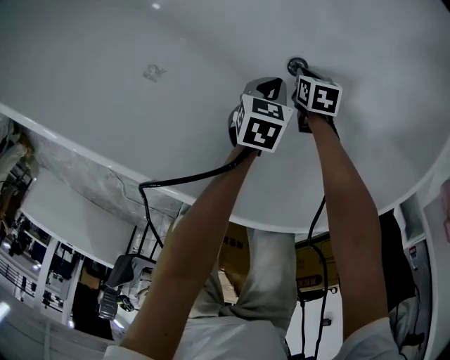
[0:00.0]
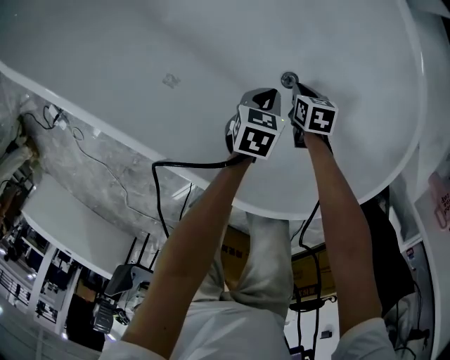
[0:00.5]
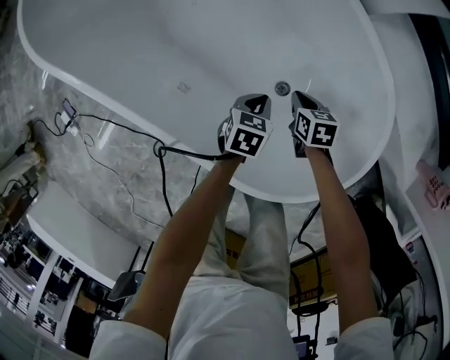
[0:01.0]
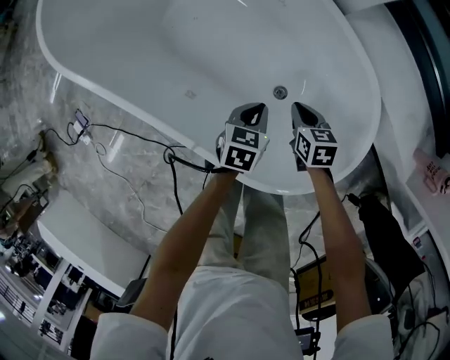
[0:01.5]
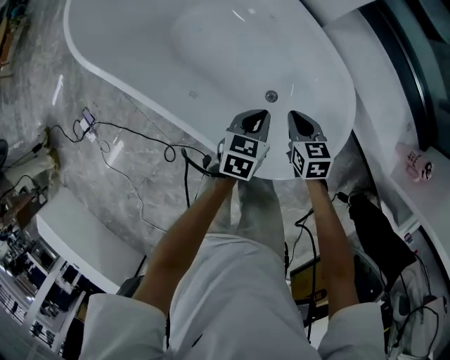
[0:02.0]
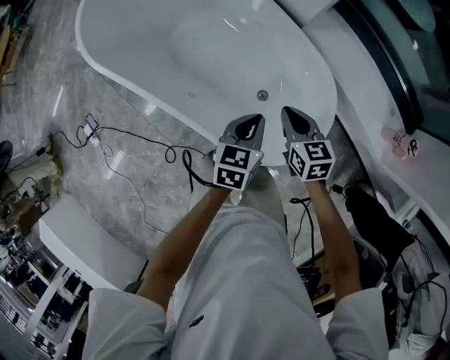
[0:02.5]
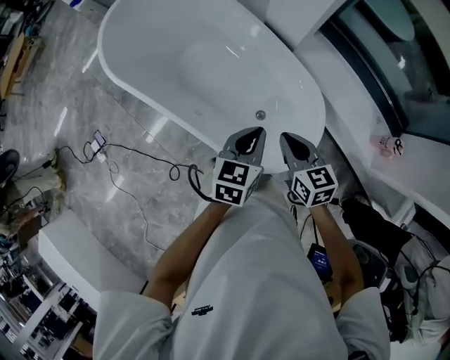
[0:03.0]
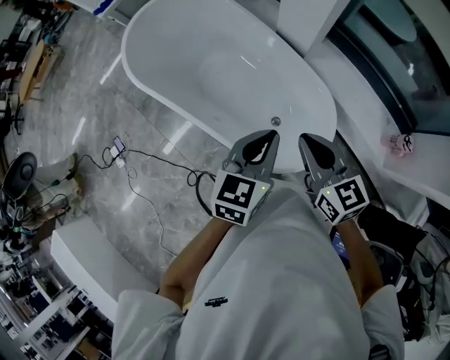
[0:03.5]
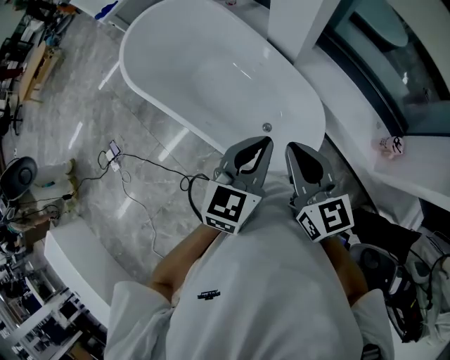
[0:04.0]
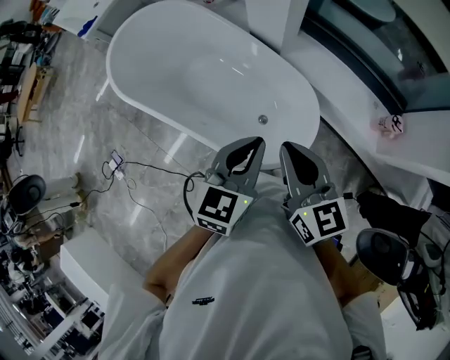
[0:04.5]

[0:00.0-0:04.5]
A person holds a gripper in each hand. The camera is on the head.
0:00.0 to 0:02.0: The two grippers go some 40 cm upward. The right gripper swivels roughly 30 degrees.
0:02.0 to 0:04.5: Both grippers travel together upward, approximately 40 cm. The right gripper angles its fingers upward, by some 30 degrees, while the left gripper changes its angle by approximately 30 degrees.

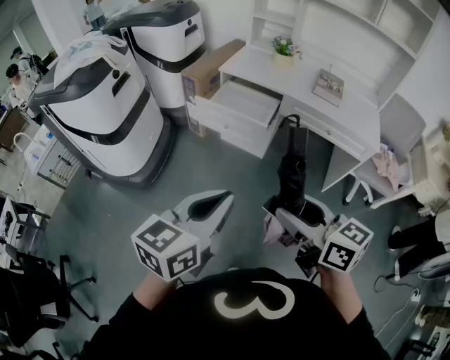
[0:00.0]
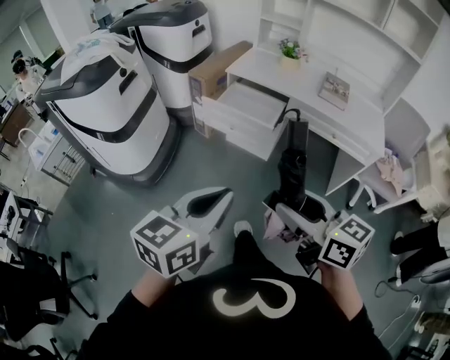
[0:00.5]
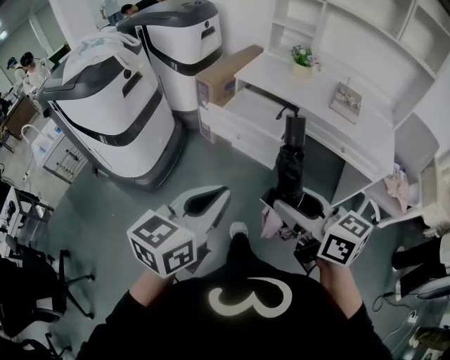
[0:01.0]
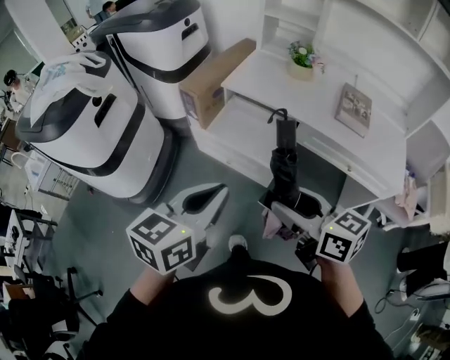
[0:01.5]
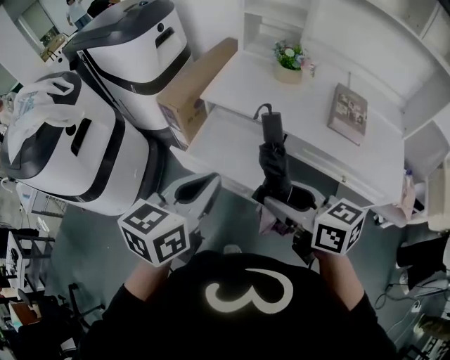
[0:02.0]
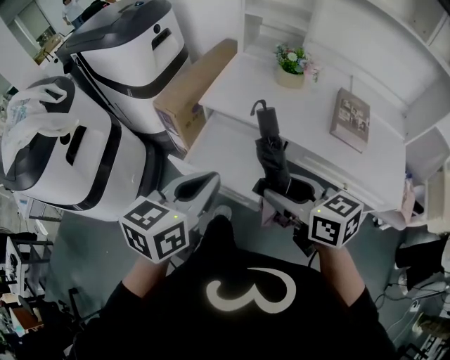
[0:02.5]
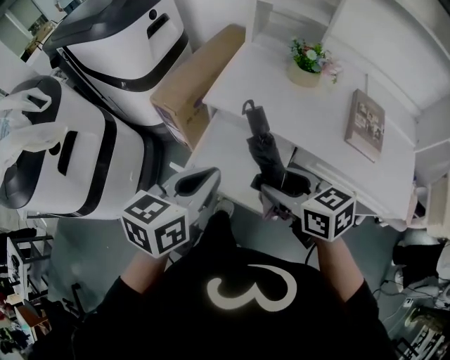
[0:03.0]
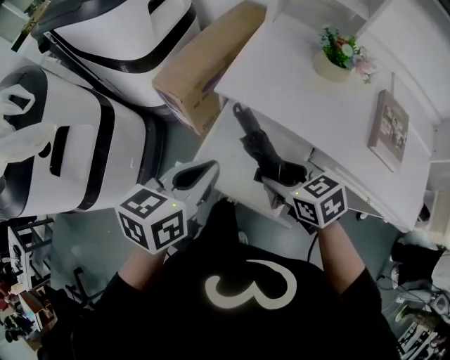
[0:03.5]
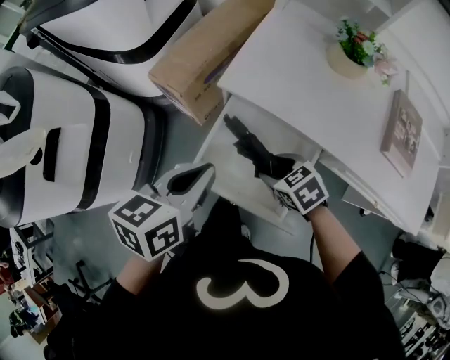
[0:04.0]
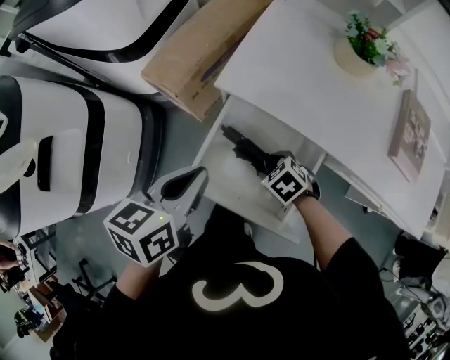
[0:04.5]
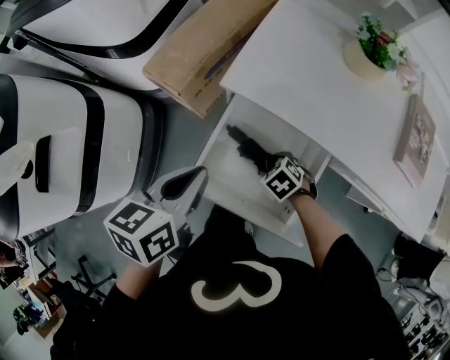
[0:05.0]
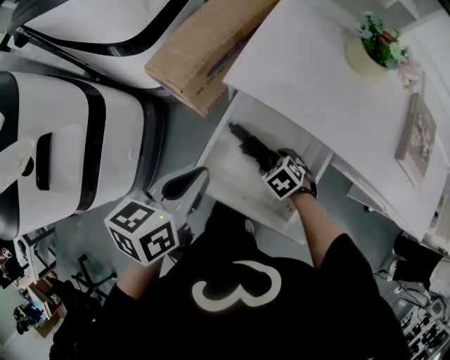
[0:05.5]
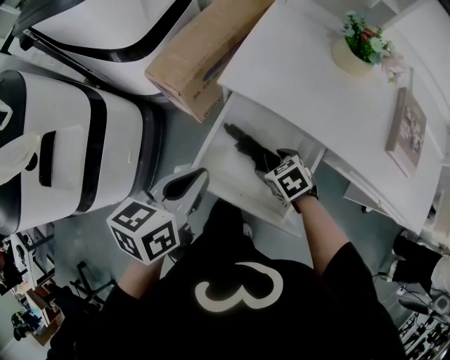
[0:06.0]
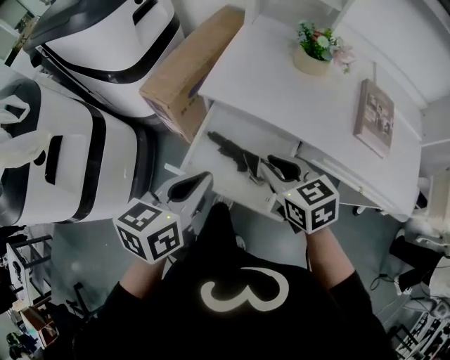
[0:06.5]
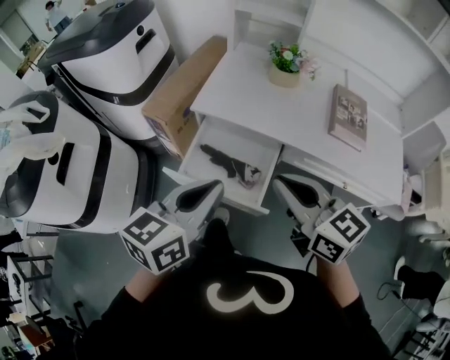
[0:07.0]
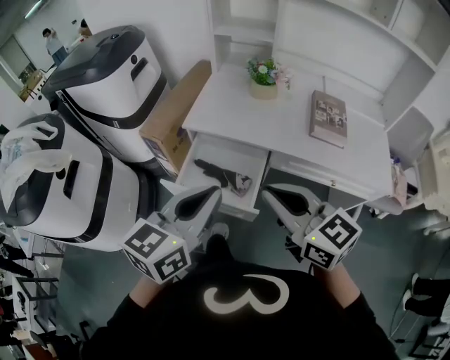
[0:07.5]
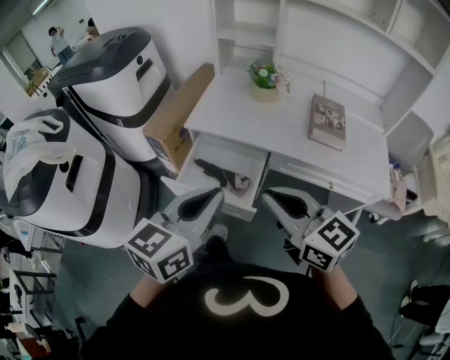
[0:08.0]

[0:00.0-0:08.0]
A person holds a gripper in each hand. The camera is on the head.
0:00.0 to 0:02.0: The two grippers travel together, forward, some 40 cm.
0:02.0 to 0:04.0: The right gripper travels downward and forward by roughly 35 cm, and points its fingers about 40 degrees further downward; the left gripper heads forward and downward, covering roughly 30 cm.
0:04.0 to 0:06.0: The right gripper travels downward by roughly 10 cm, and opens.
0:06.0 to 0:08.0: The left gripper goes some 35 cm upward, backward and to the right, and turns by about 30 degrees; the right gripper moves upward and backward, roughly 50 cm, points its fingers roughly 60 degrees further upward, and closes its fingers.

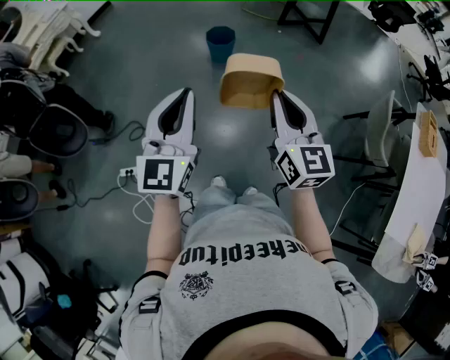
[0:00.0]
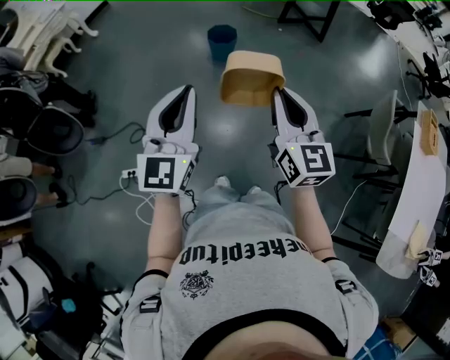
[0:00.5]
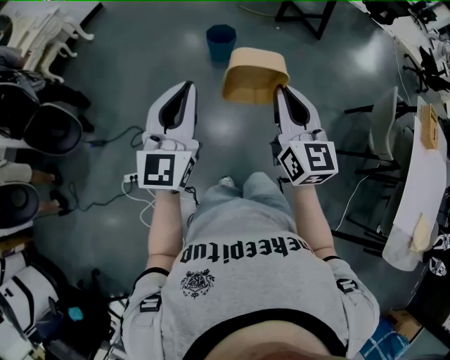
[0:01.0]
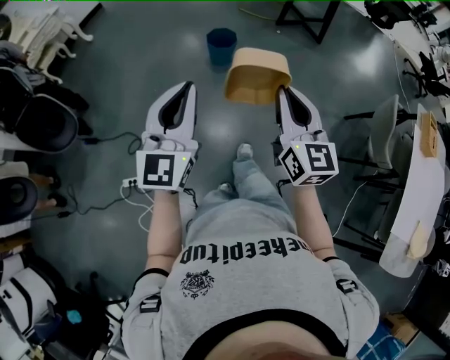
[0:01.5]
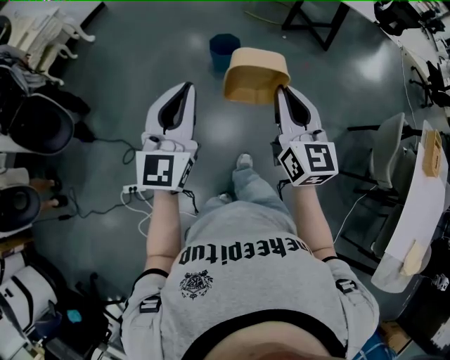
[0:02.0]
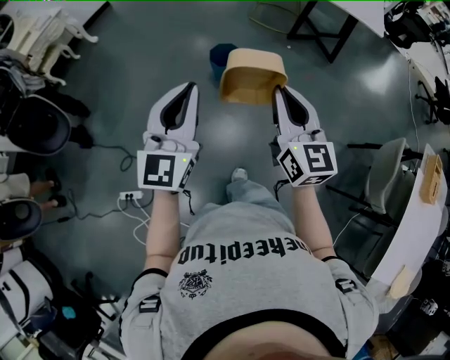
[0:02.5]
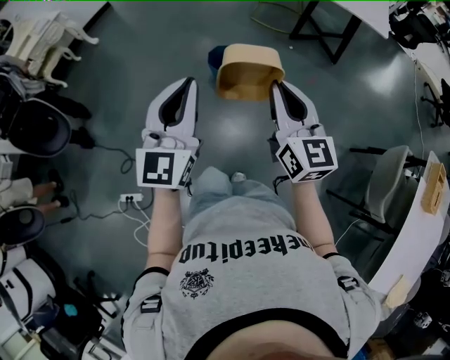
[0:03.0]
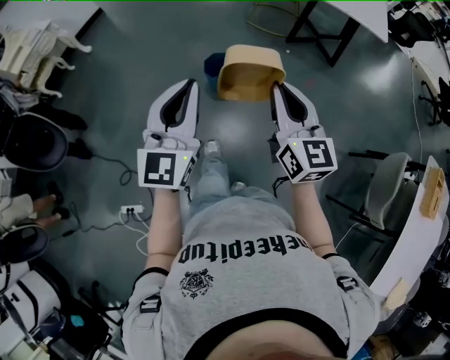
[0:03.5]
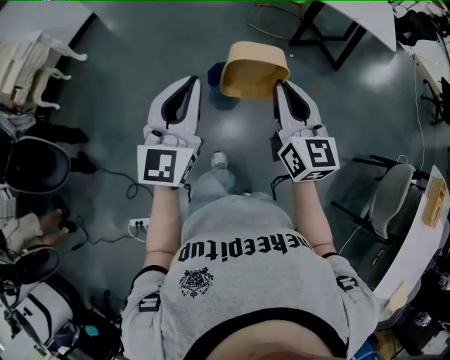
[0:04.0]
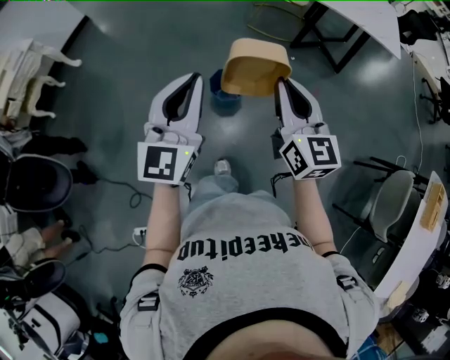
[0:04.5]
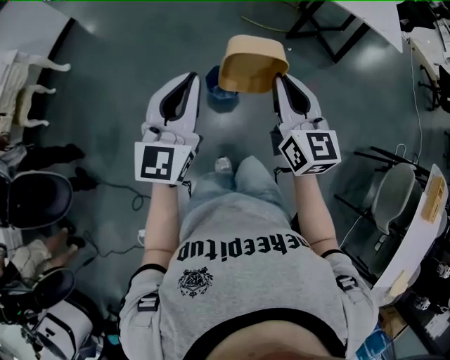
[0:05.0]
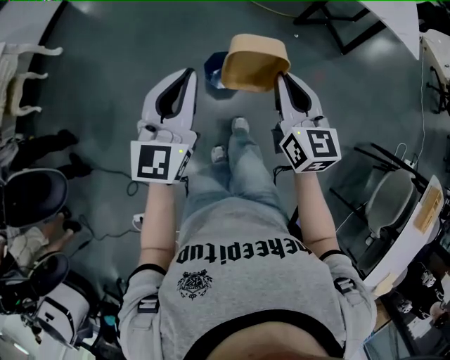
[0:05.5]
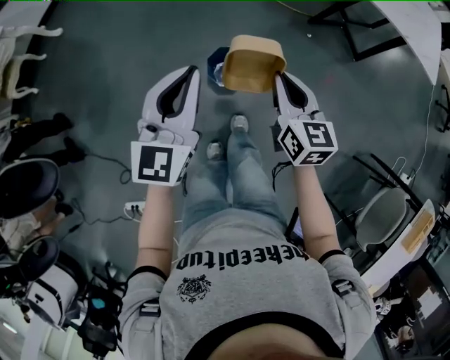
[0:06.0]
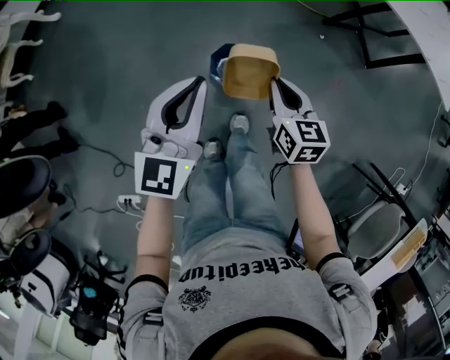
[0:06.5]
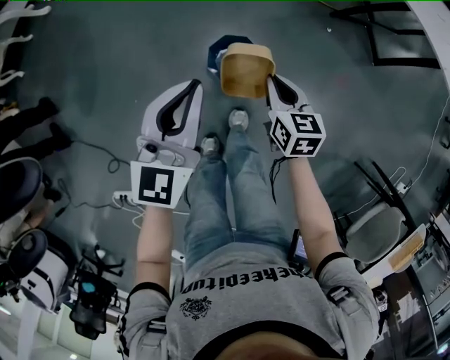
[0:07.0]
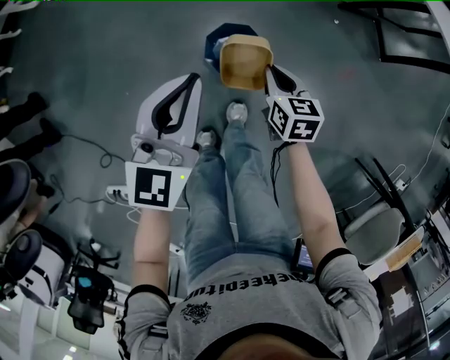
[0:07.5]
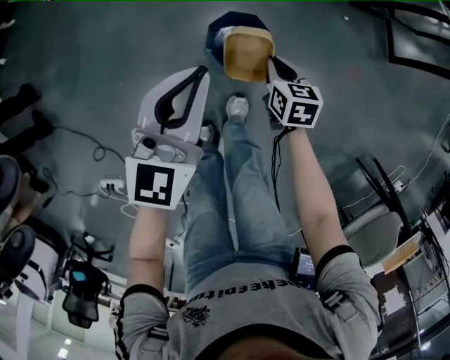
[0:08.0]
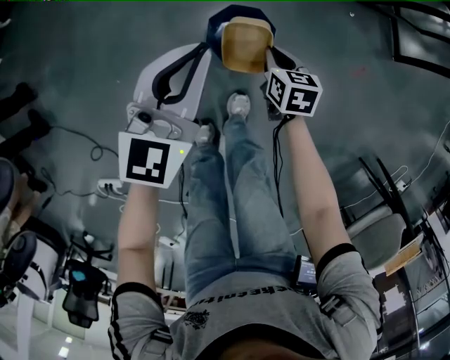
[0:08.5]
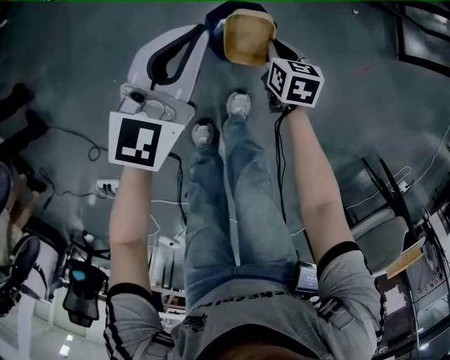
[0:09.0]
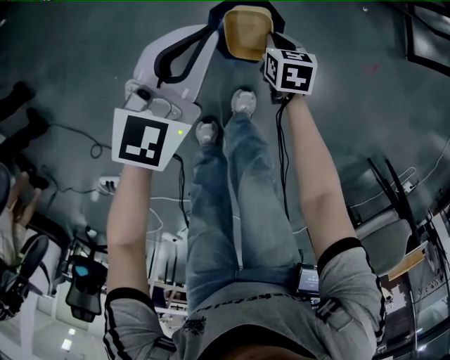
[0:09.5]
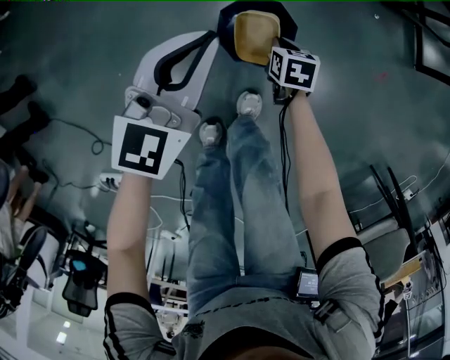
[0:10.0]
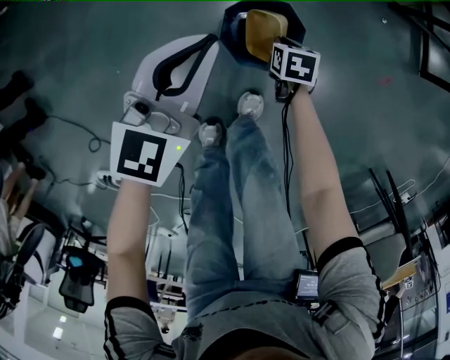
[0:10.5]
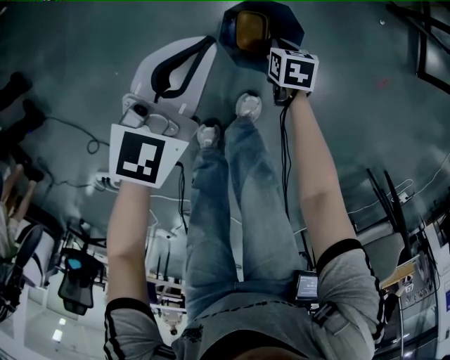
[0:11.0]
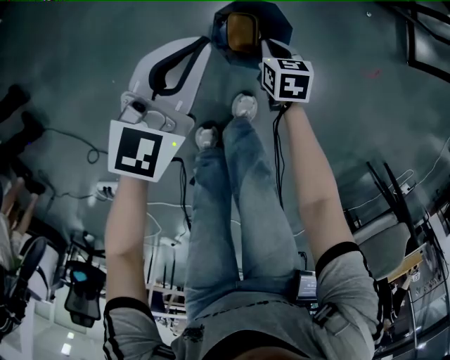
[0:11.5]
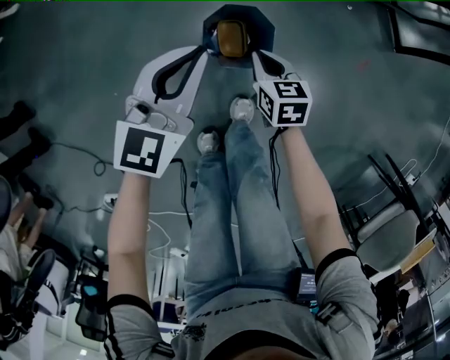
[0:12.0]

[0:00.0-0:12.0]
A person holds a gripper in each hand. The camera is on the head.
0:00.0 to 0:02.0: The two grippers go approximately 15 cm forward.
0:02.0 to 0:04.0: The grippers both shift forward by approximately 35 cm.
0:04.0 to 0:06.0: Both grippers travel together forward and downward, roughly 30 cm. The right gripper swivels about 20 degrees.
0:06.0 to 0:08.0: The right gripper shifts some 35 cm downward, and changes its angle by roughly 30 degrees. Meanwhile the left gripper travels downward by some 20 cm.
0:08.0 to 0:10.0: The left gripper shifts roughly 15 cm downward and forward. The right gripper travels downward by about 15 cm.
0:10.0 to 0:12.0: The right gripper travels upward by some 10 cm.

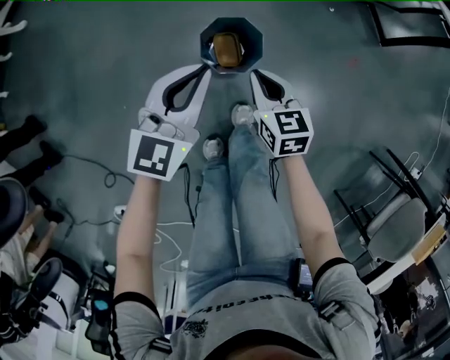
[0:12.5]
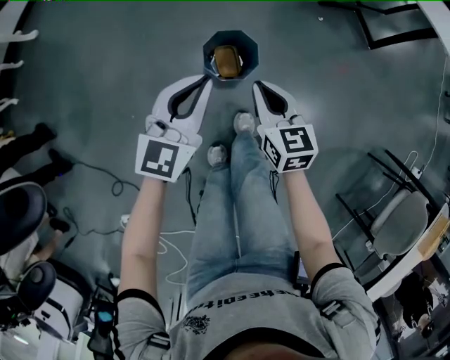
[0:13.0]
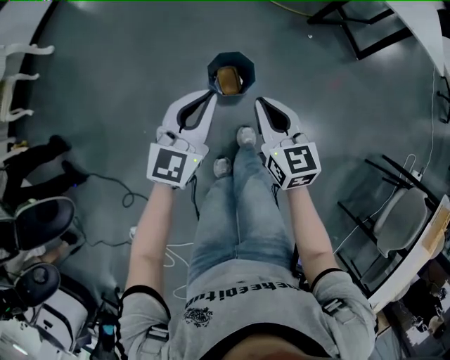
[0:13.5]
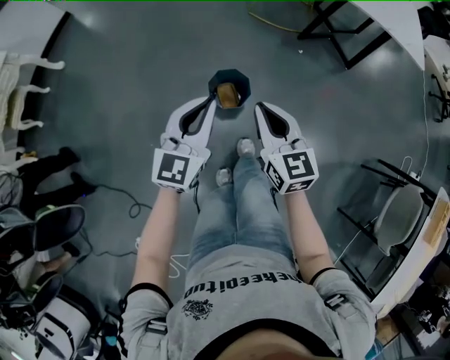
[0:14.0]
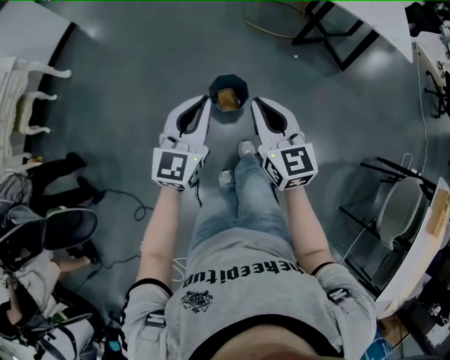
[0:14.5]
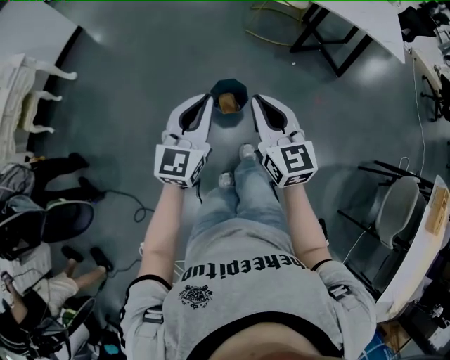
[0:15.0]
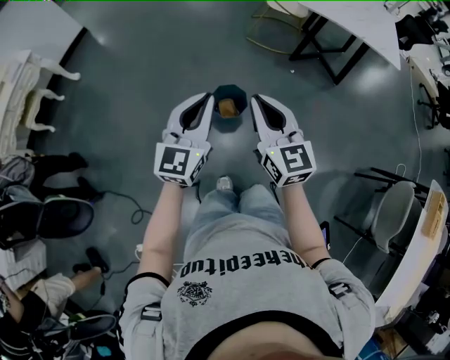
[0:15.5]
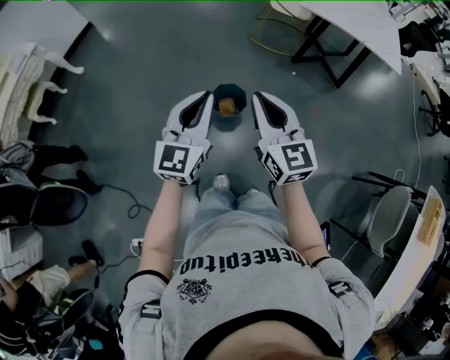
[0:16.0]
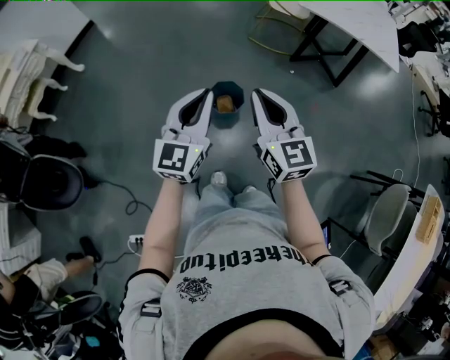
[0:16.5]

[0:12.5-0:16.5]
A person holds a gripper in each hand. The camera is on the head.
0:12.5 to 0:14.5: The left gripper goes roughly 25 cm upward and backward, while the right gripper goes approximately 35 cm upward, and turns by approximately 30 degrees.
0:14.5 to 0:16.5: The two grippers go roughly 10 cm upward and backward.
